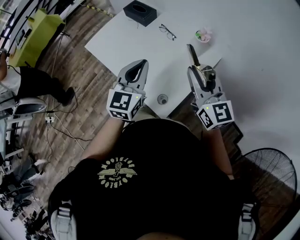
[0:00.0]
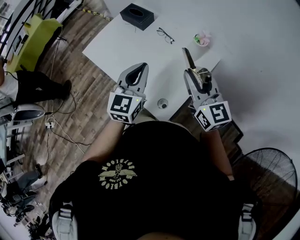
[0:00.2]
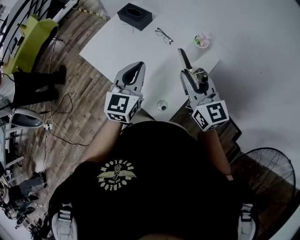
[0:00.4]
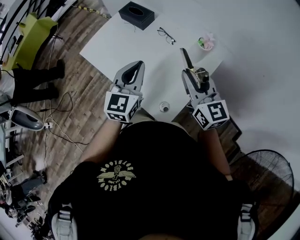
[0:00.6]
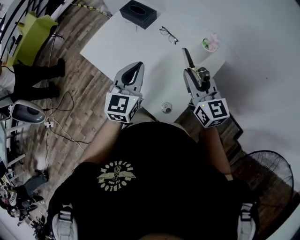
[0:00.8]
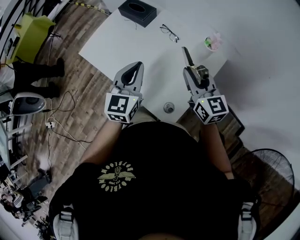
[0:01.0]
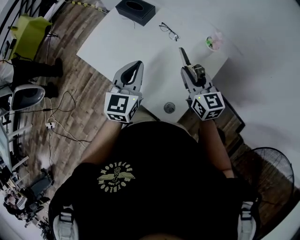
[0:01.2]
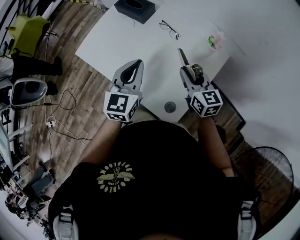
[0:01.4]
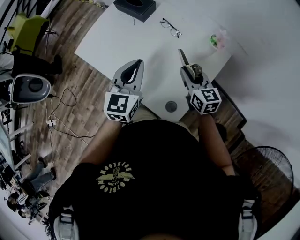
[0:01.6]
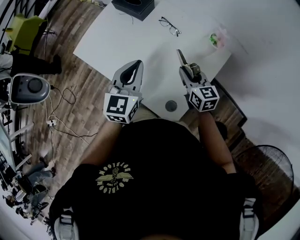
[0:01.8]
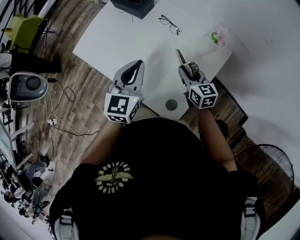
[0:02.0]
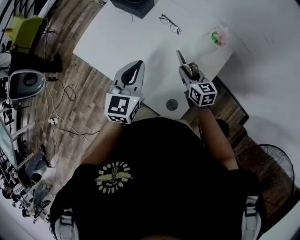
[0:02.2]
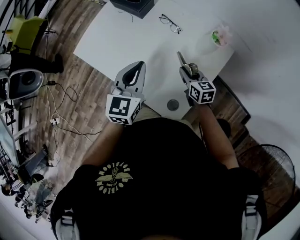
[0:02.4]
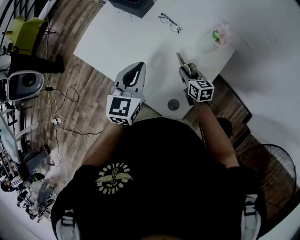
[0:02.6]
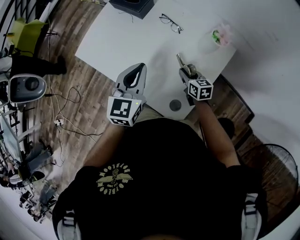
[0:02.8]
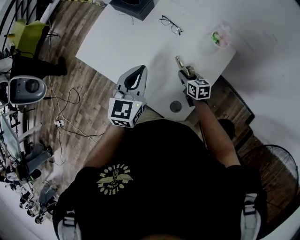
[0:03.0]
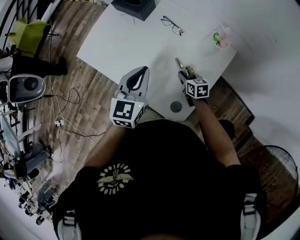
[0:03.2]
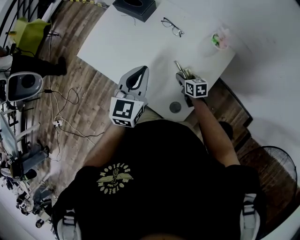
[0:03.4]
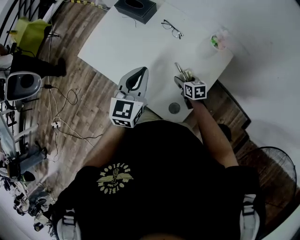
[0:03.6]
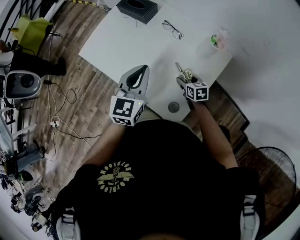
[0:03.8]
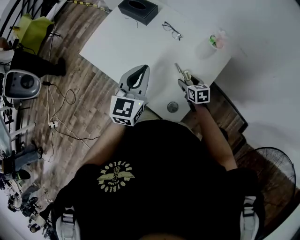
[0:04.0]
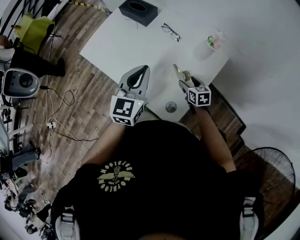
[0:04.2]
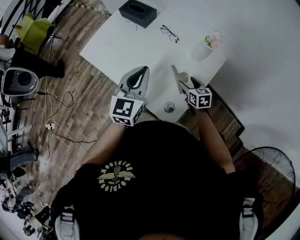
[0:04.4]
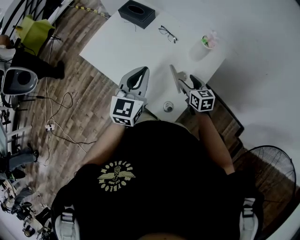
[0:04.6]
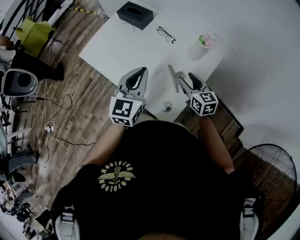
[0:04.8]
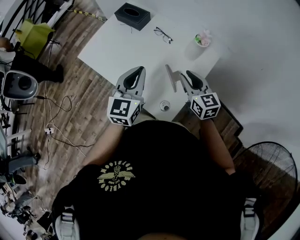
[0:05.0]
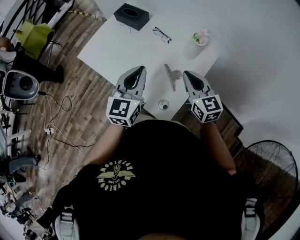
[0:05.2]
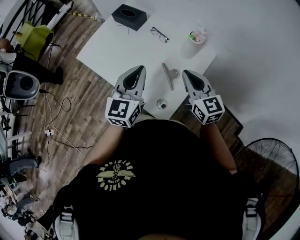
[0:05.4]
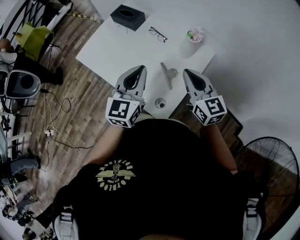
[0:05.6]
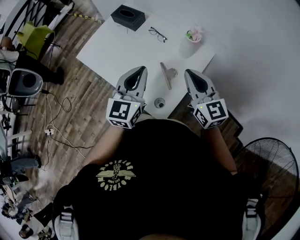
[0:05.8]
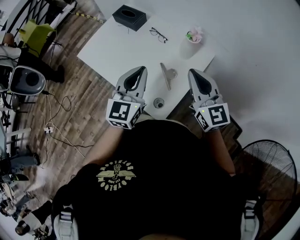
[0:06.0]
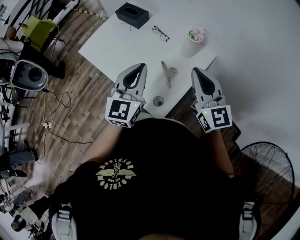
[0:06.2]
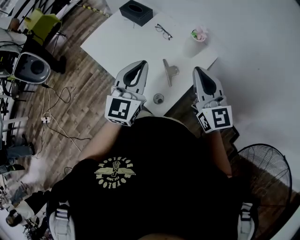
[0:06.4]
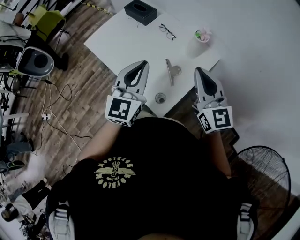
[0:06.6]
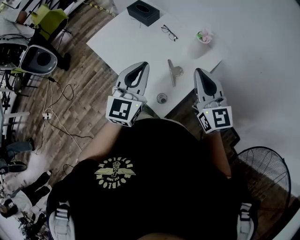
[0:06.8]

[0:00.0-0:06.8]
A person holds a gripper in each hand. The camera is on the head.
0:00.0 to 0:01.4: The right gripper moves downward and forward, some 20 cm, and changes its angle by roughly 20 degrees. The left gripper goes roughly 15 cm forward, downward and to the left.
0:01.4 to 0:02.8: The right gripper goes some 20 cm downward, and changes its angle by about 20 degrees.
0:02.8 to 0:04.0: The right gripper opens.
0:04.0 to 0:05.4: The left gripper shifts roughly 10 cm backward and upward. The right gripper shifts some 30 cm upward, angles its fingers upward, by some 30 degrees, and closes up.
0:05.4 to 0:06.8: The left gripper heads backward, covering some 5 cm, while the right gripper is displaced upward and backward by approximately 10 cm.

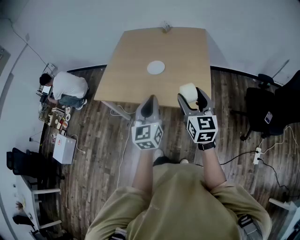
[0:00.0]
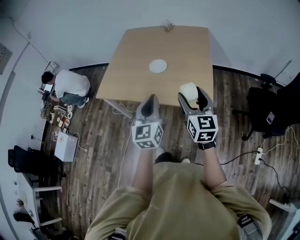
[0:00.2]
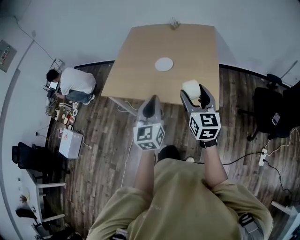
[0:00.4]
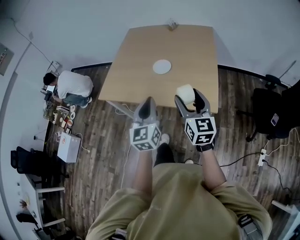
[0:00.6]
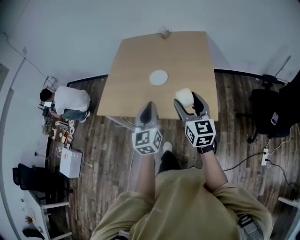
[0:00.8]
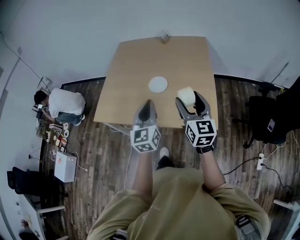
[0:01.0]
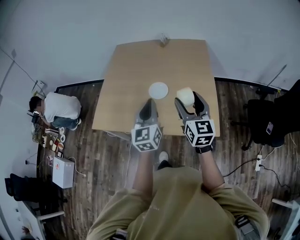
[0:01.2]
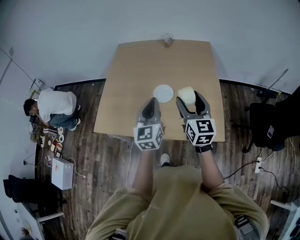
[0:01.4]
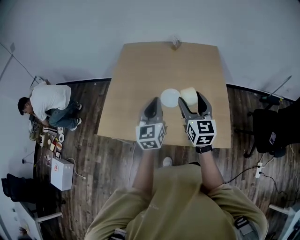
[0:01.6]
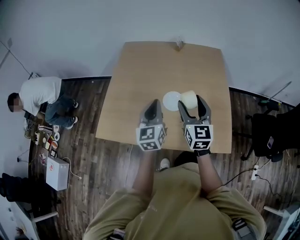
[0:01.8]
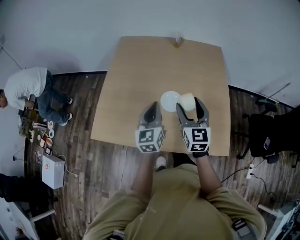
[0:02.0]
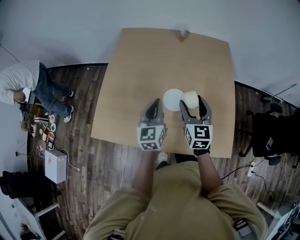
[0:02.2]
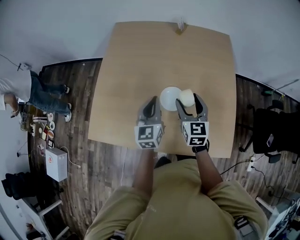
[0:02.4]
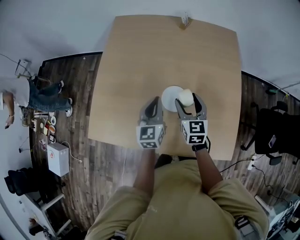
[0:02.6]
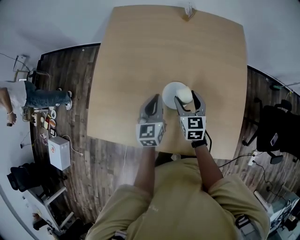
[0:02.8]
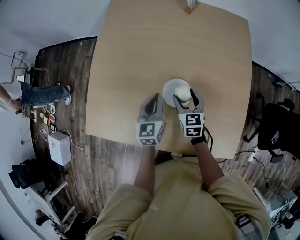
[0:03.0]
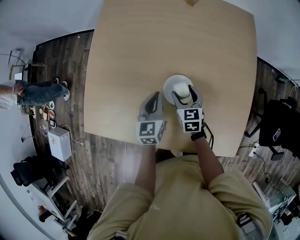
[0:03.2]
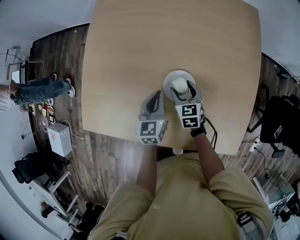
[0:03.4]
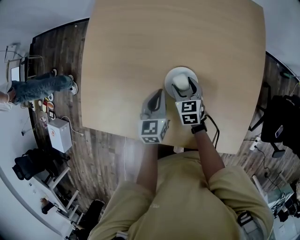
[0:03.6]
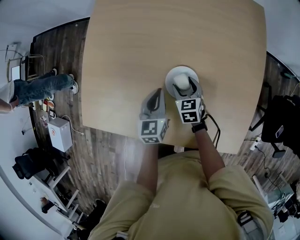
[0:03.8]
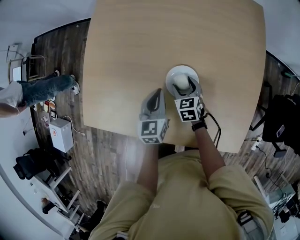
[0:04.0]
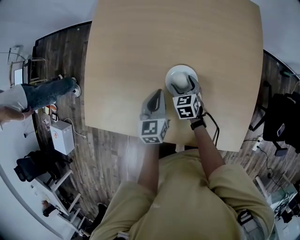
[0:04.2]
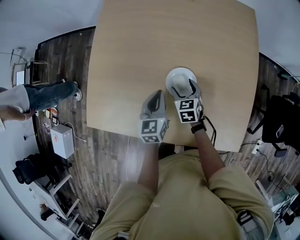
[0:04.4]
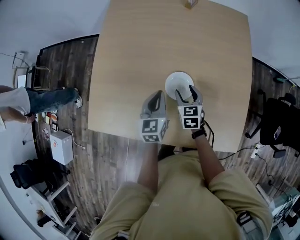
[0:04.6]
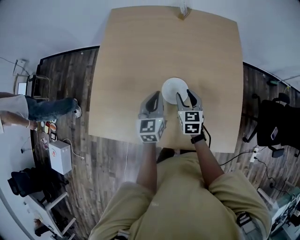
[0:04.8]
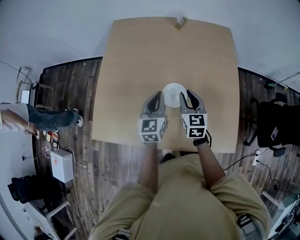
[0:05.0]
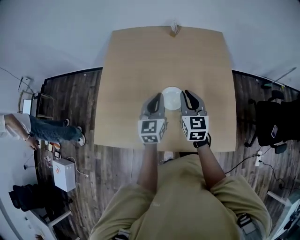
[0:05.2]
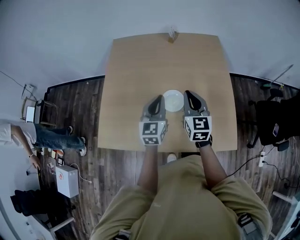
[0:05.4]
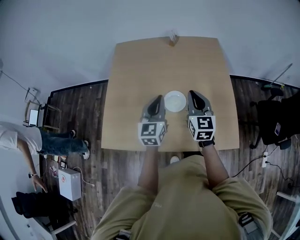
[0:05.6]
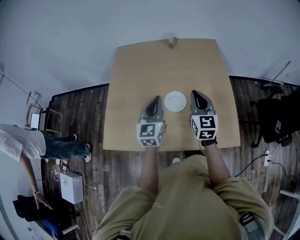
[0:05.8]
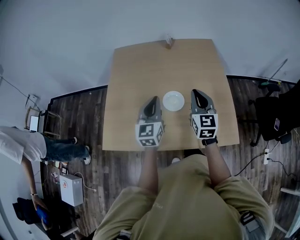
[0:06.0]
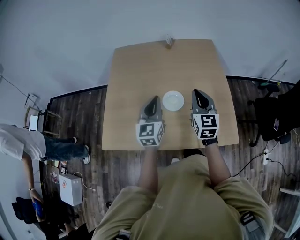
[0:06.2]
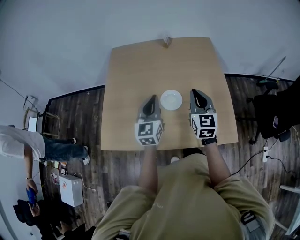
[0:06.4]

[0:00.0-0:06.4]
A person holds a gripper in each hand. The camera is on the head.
0:00.0 to 0:01.6: Both grippers travel together forward and to the left, approximately 35 cm.
0:01.6 to 0:03.2: The grippers both shift downward and forward by some 35 cm. The left gripper rotates about 30 degrees, while the right gripper angles its fingers downward, by about 30 degrees.
0:03.2 to 0:04.8: Both grippers move upward, about 10 cm.
0:04.8 to 0:06.4: The two grippers go roughly 20 cm upward and backward. The right gripper rotates some 30 degrees, and closes.

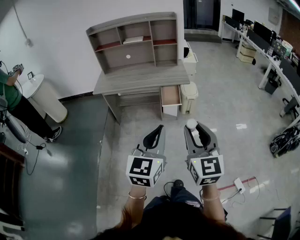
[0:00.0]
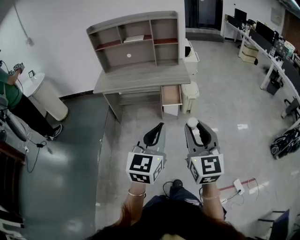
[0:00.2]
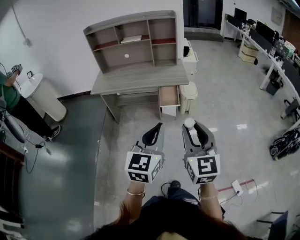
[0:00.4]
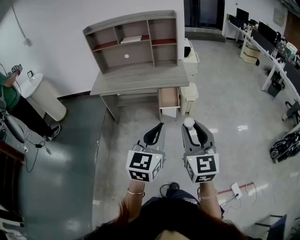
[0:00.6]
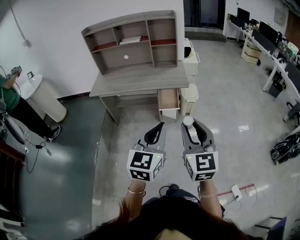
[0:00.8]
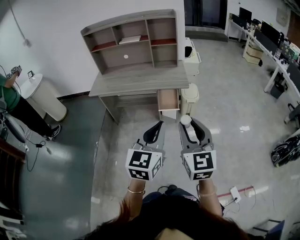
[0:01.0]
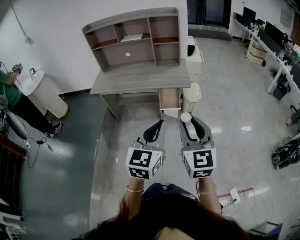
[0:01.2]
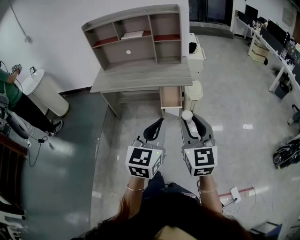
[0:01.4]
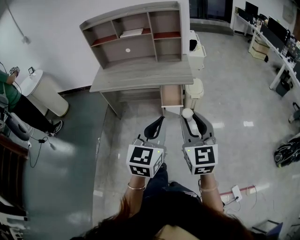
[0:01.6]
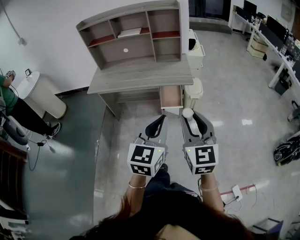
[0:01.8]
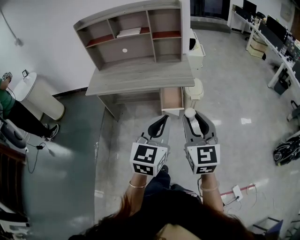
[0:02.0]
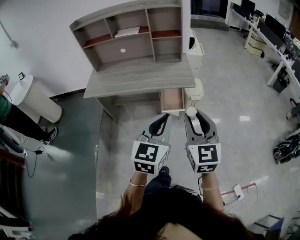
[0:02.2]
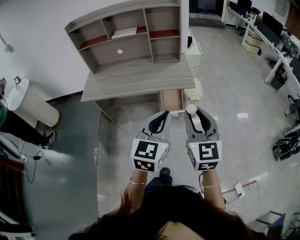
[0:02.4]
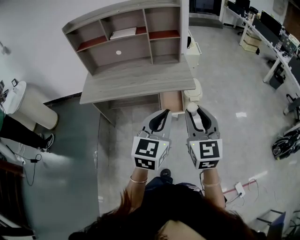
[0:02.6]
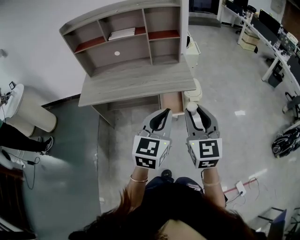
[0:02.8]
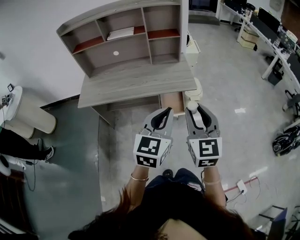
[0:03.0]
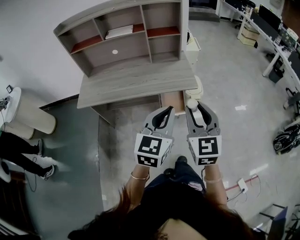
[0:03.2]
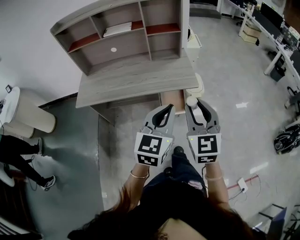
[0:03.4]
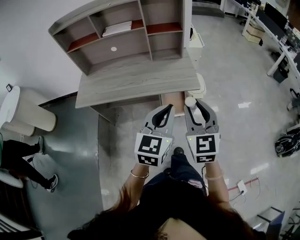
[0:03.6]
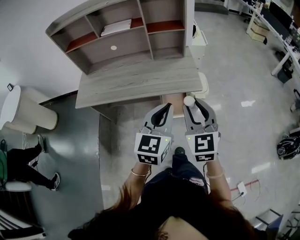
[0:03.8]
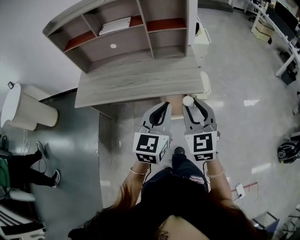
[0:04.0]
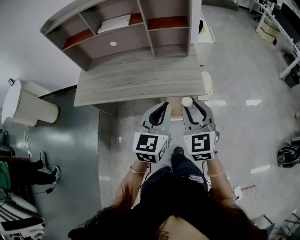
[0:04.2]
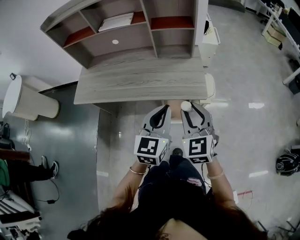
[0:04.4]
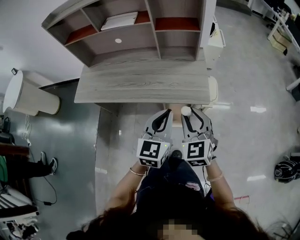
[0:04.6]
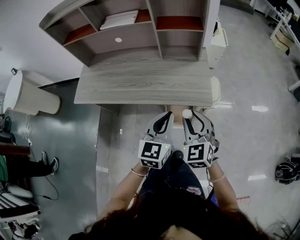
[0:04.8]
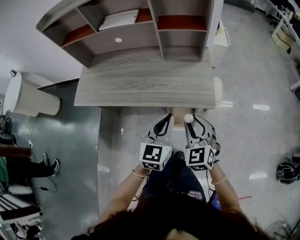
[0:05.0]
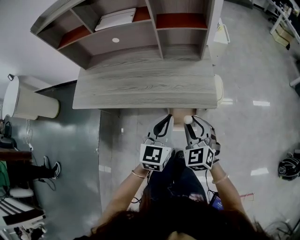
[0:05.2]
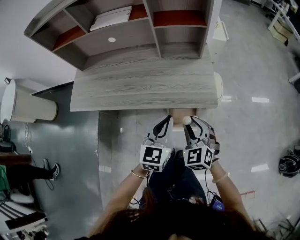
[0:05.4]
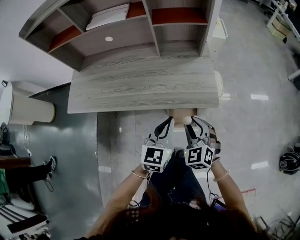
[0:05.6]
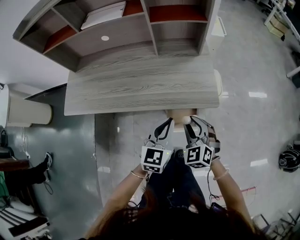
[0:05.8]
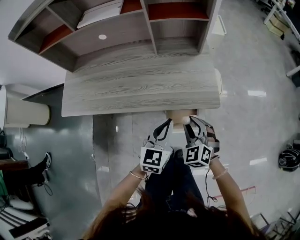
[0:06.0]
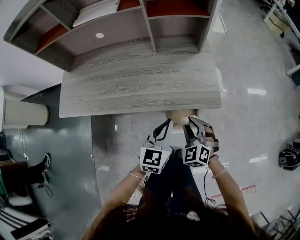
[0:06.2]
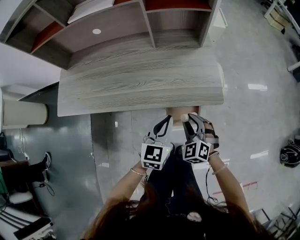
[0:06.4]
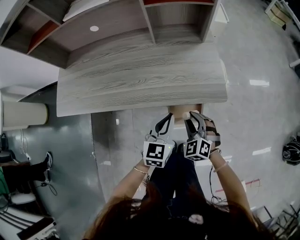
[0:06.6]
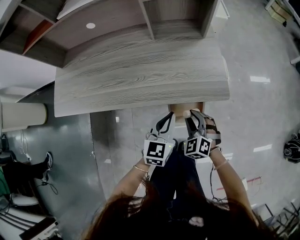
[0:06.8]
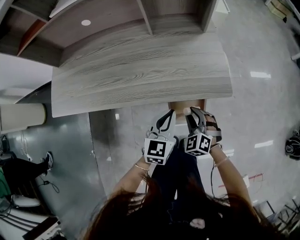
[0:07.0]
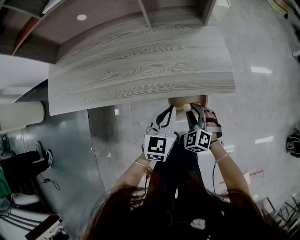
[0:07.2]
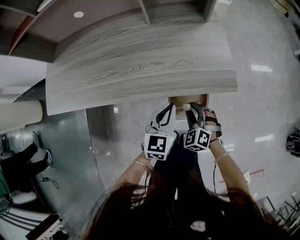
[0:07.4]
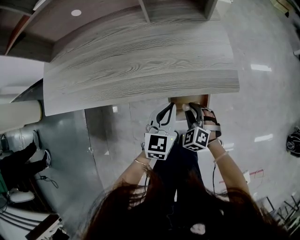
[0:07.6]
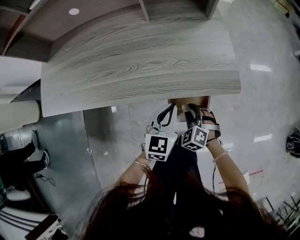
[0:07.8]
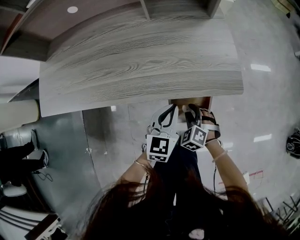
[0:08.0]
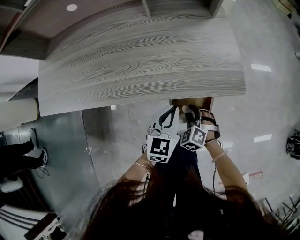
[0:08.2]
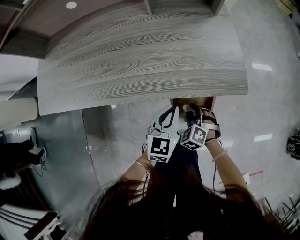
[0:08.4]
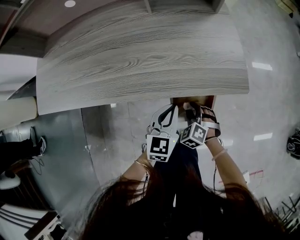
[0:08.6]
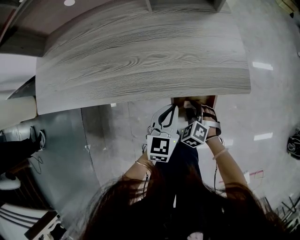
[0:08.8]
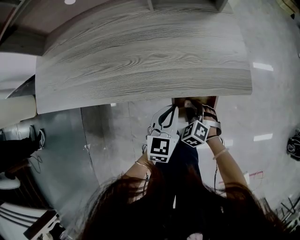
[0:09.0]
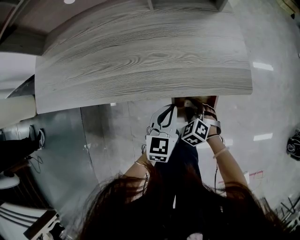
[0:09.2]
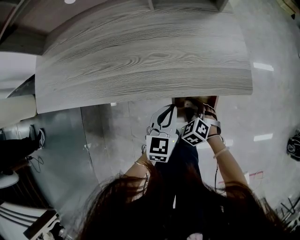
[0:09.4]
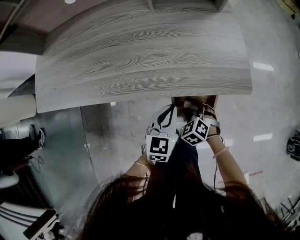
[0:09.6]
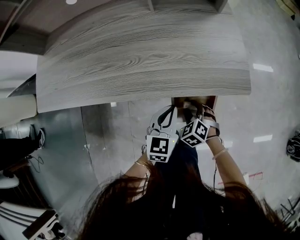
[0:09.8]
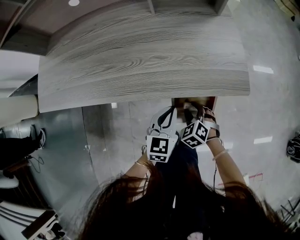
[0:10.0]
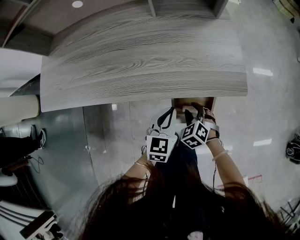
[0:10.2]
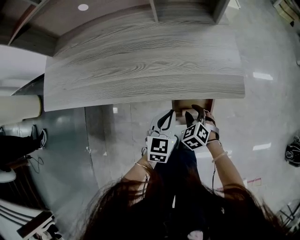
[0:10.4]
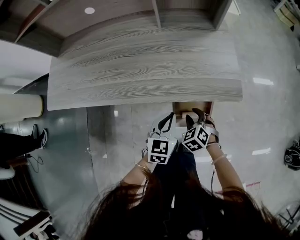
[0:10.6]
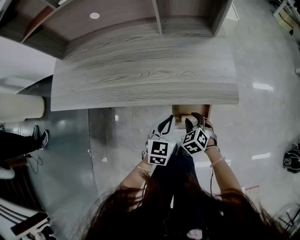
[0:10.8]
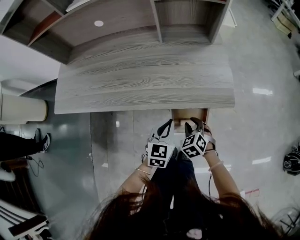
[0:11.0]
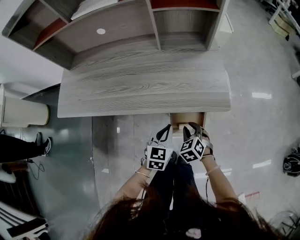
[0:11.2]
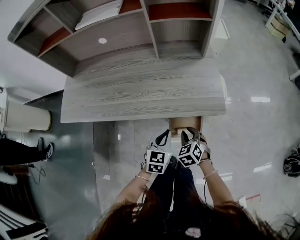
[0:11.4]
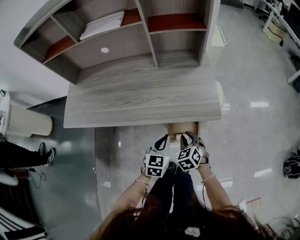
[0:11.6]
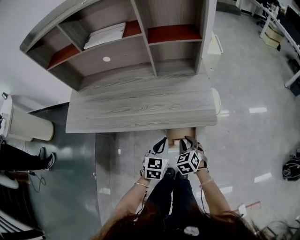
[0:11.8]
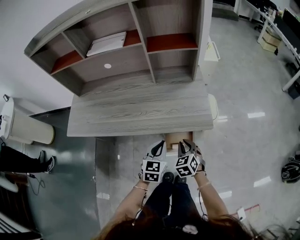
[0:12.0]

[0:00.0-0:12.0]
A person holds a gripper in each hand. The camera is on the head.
0:00.0 to 0:01.6: The grippers both shift forward by about 15 cm.
0:01.6 to 0:03.0: Both grippers move forward and to the left, roughly 20 cm.
0:03.0 to 0:04.4: The left gripper travels forward by about 20 cm. The right gripper moves forward and downward, some 25 cm, and swivels roughly 20 degrees.
0:04.4 to 0:06.0: The right gripper travels downward by approximately 20 cm, and swivels approximately 20 degrees. Meanwhile the left gripper heads downward and forward, covering approximately 20 cm.
0:06.0 to 0:07.6: The grippers both shift downward by about 20 cm.
0:07.6 to 0:09.0: The grippers both shift downward by roughly 5 cm.
0:09.0 to 0:10.4: The grippers make only small movements.
0:10.4 to 0:12.0: Both grippers move upward, roughly 15 cm. The right gripper changes its angle by some 20 degrees, and closes its fingers.
